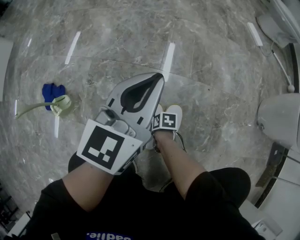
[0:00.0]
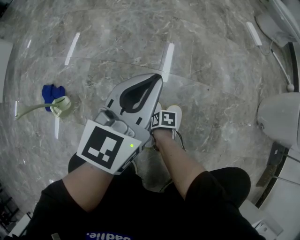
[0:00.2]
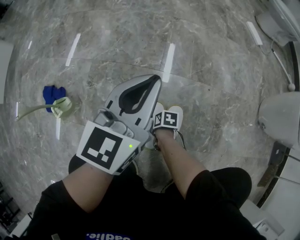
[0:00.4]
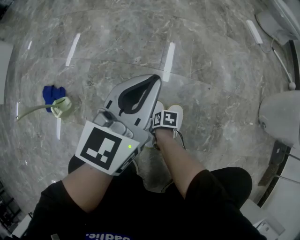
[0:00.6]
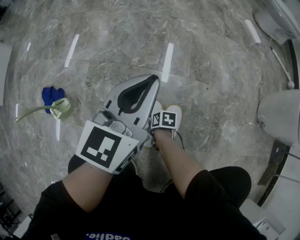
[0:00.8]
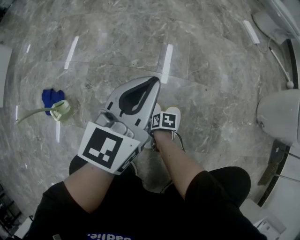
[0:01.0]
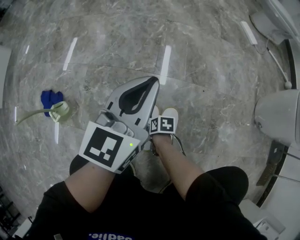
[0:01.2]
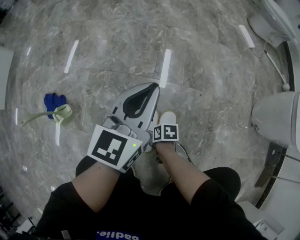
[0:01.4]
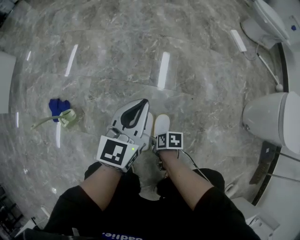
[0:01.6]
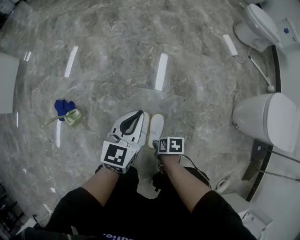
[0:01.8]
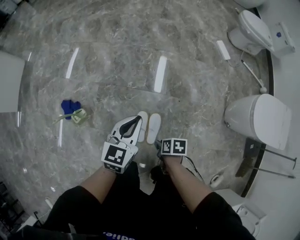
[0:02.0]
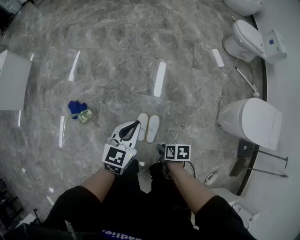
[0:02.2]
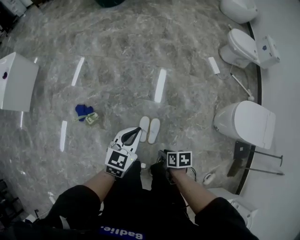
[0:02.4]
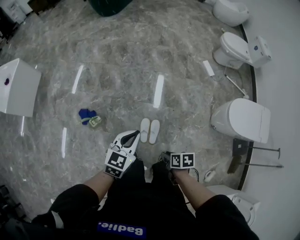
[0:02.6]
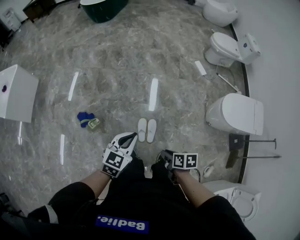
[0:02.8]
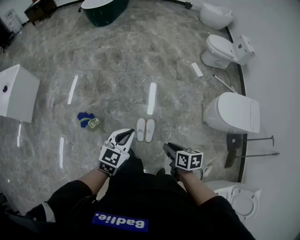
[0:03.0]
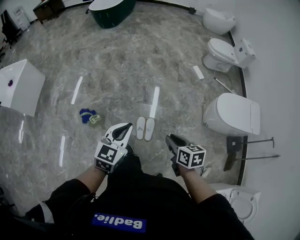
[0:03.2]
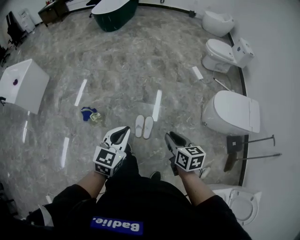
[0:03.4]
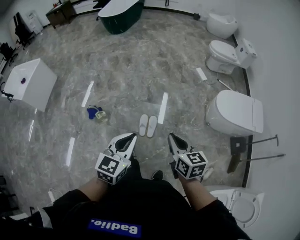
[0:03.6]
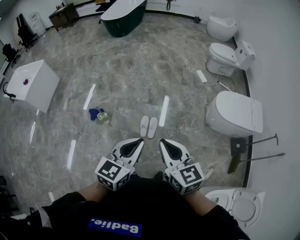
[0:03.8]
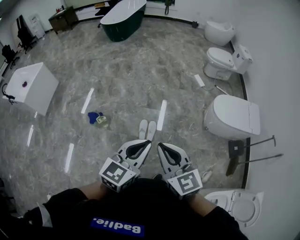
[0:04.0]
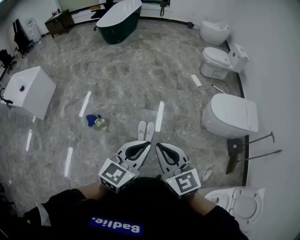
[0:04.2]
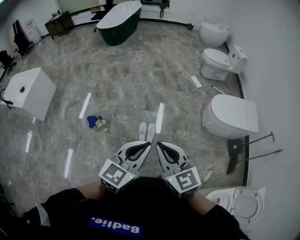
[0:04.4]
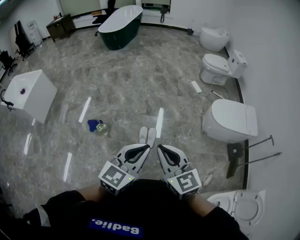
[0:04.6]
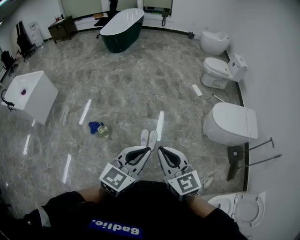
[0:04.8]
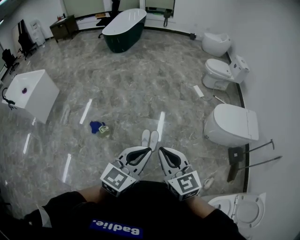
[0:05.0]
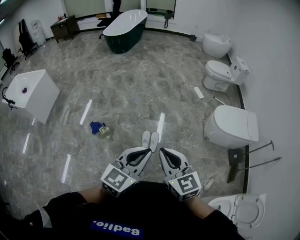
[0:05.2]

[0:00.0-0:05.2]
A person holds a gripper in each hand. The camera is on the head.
0:00.0 to 0:01.8: The right gripper shifts approximately 25 cm upward, while the left gripper shifts approximately 10 cm upward.
0:01.8 to 0:03.4: Both grippers move upward, about 50 cm. The right gripper points its fingers roughly 30 degrees further upward.
0:03.4 to 0:05.2: The right gripper is displaced upward, backward and to the left by roughly 25 cm, and changes its angle by approximately 30 degrees. Meanwhile the left gripper goes roughly 20 cm backward and upward.

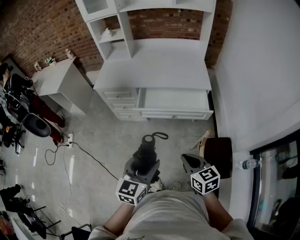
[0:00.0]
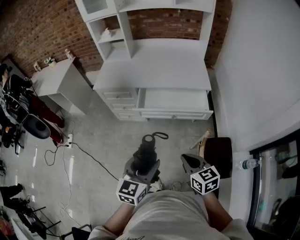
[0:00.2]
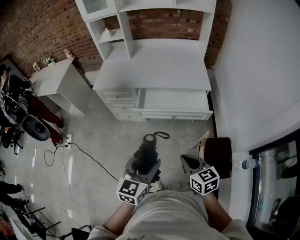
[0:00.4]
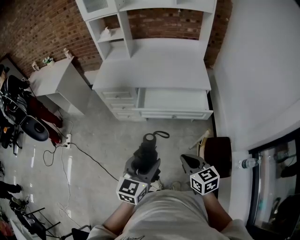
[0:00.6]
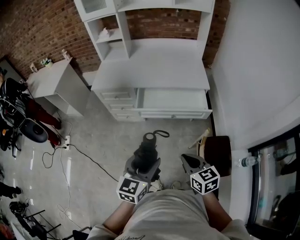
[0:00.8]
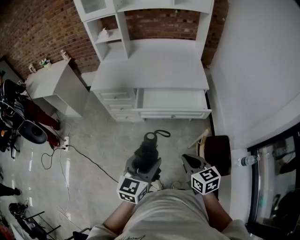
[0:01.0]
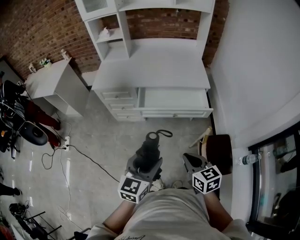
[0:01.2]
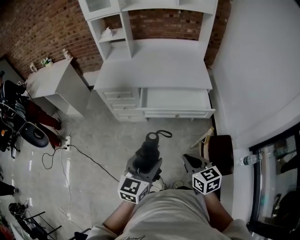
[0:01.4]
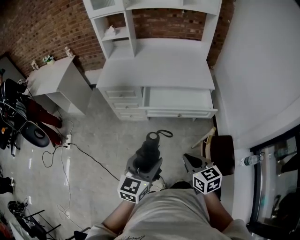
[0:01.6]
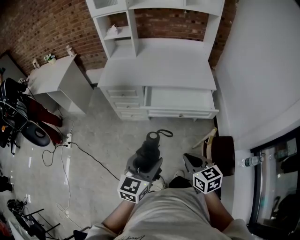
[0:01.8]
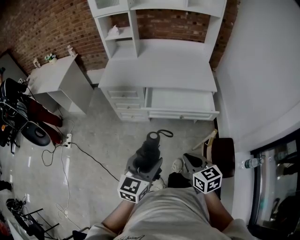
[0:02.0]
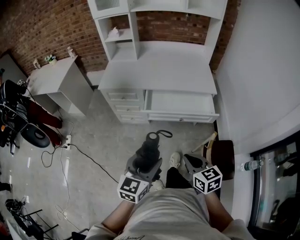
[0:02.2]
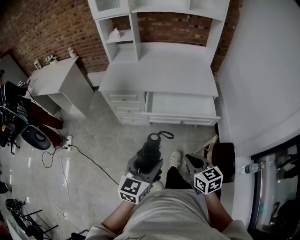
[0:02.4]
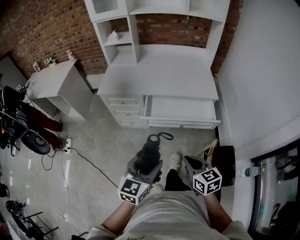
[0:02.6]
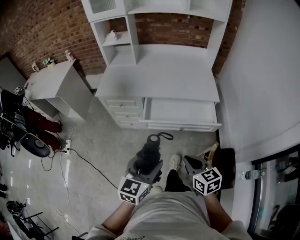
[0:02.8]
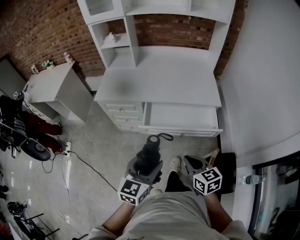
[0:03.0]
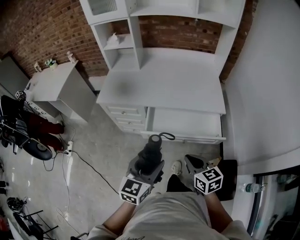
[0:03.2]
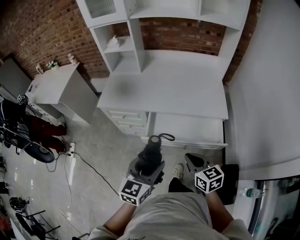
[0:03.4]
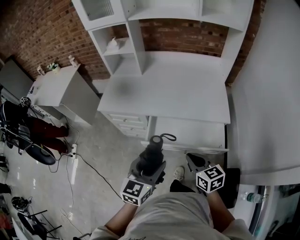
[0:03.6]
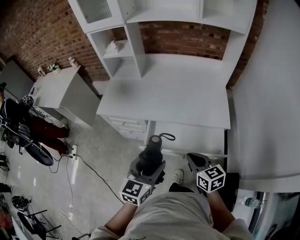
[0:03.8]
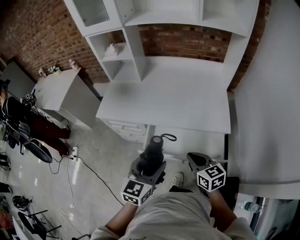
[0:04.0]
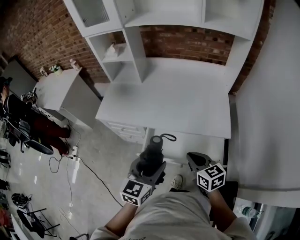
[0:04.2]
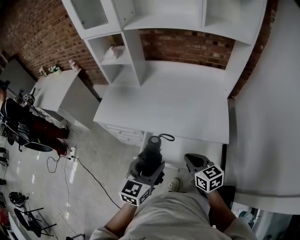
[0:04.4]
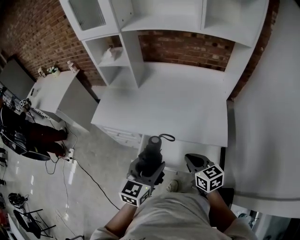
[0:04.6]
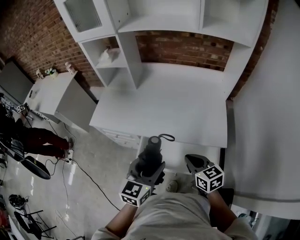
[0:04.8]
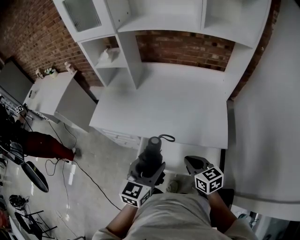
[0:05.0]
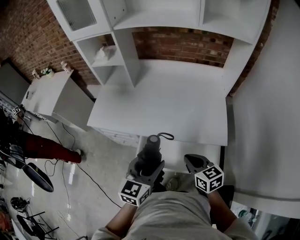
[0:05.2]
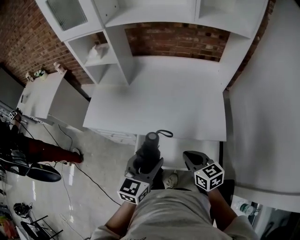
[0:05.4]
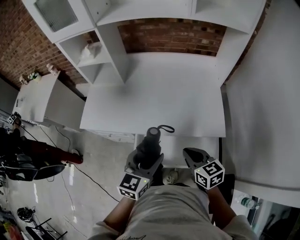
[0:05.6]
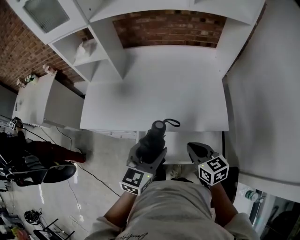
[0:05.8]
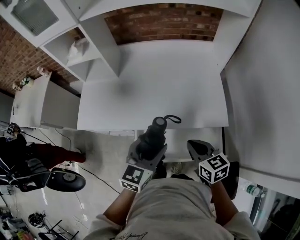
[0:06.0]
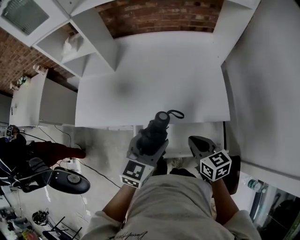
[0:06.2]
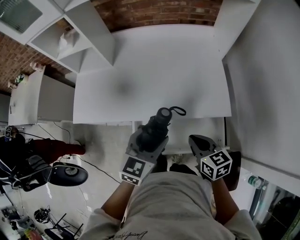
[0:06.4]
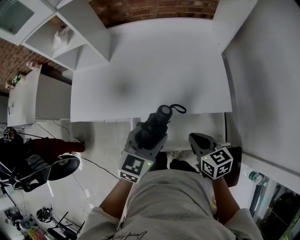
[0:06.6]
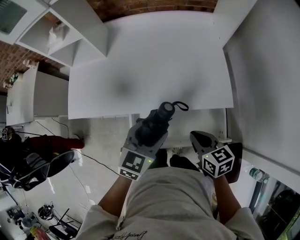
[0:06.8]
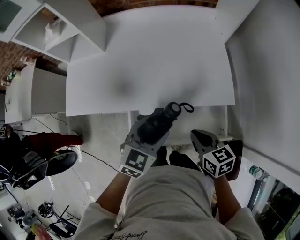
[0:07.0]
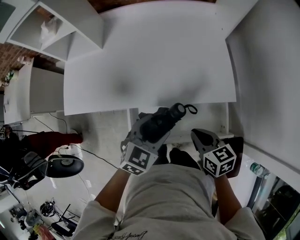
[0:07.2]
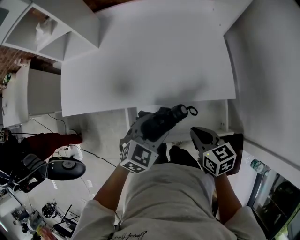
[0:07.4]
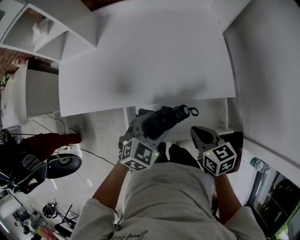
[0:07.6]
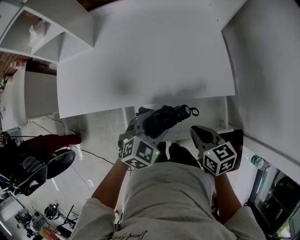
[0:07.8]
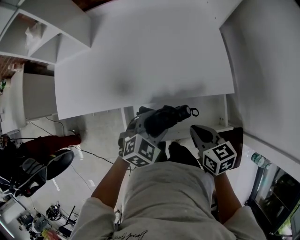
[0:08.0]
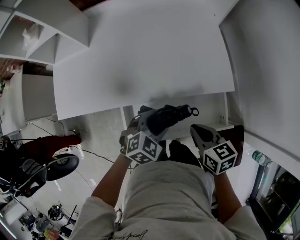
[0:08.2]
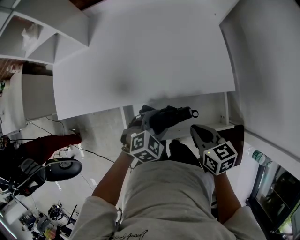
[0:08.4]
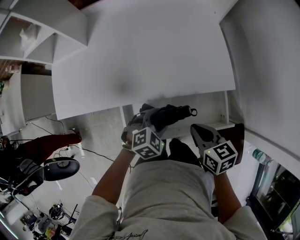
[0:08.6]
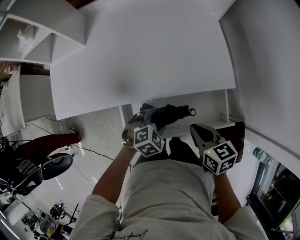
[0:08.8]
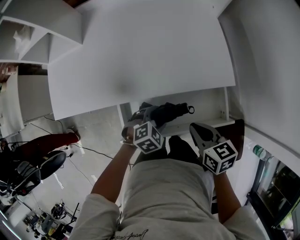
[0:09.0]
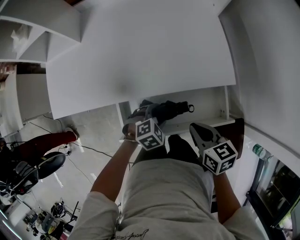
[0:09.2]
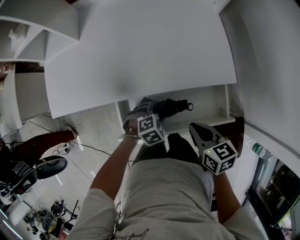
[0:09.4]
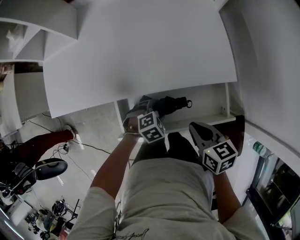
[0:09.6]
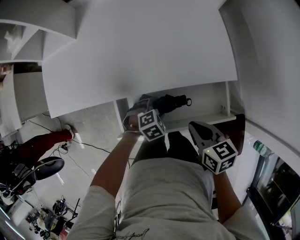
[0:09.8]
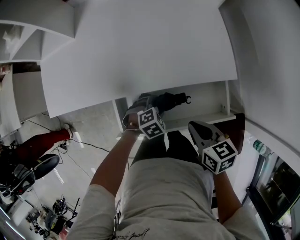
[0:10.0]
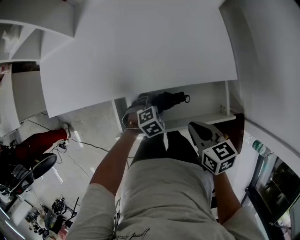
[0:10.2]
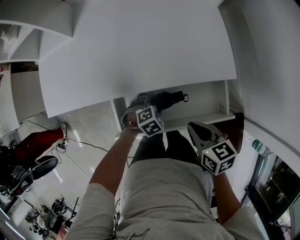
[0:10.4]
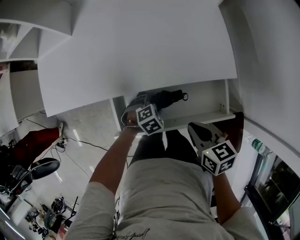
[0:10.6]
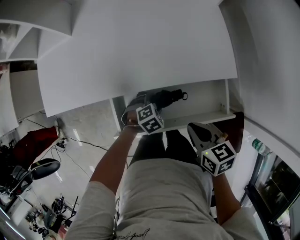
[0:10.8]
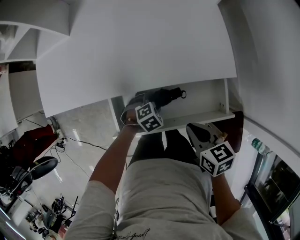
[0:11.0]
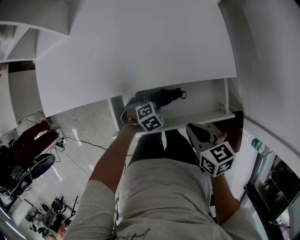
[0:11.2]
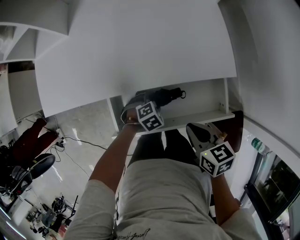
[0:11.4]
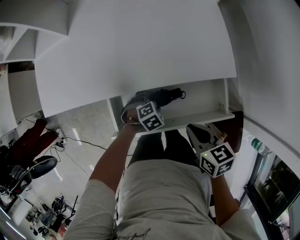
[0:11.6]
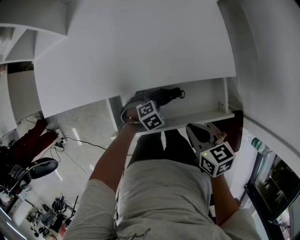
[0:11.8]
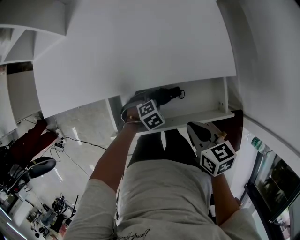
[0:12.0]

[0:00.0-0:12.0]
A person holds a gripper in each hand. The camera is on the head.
0:00.0 to 0:01.6: Both grippers travel together to the left, roughly 5 cm.
0:01.6 to 0:03.0: The grippers both shift forward by roughly 15 cm.
0:03.0 to 0:04.4: The right gripper goes roughly 25 cm forward. The left gripper goes approximately 25 cm forward and to the right.
0:04.4 to 0:06.0: The right gripper heads forward, covering approximately 10 cm; the left gripper is displaced forward by about 15 cm.
0:06.0 to 0:07.6: The right gripper heads downward, covering some 10 cm. The left gripper moves downward, about 15 cm, and turns by about 30 degrees.
0:07.6 to 0:09.0: The left gripper travels downward by some 15 cm, and swivels roughly 20 degrees.
0:09.0 to 0:10.4: The left gripper is displaced downward by roughly 10 cm.
0:10.4 to 0:12.0: The grippers stay close to where they were, moving slightly.

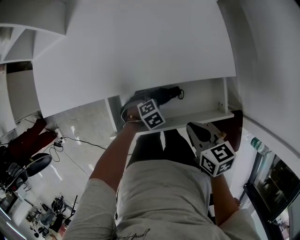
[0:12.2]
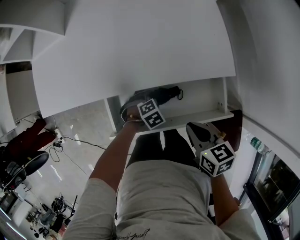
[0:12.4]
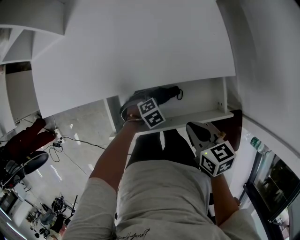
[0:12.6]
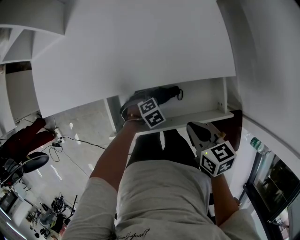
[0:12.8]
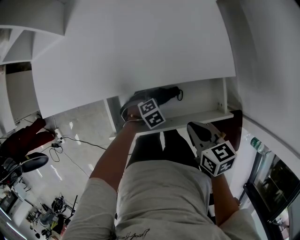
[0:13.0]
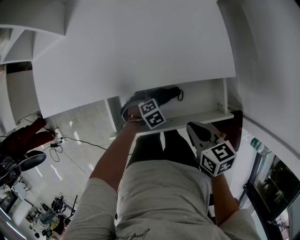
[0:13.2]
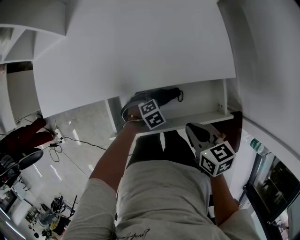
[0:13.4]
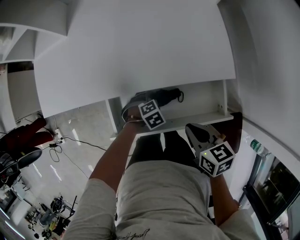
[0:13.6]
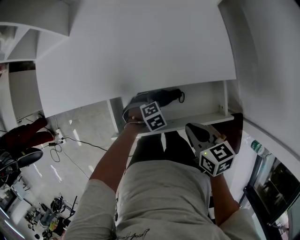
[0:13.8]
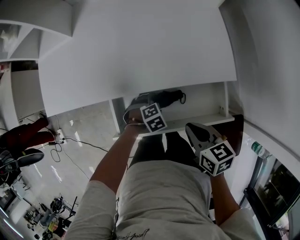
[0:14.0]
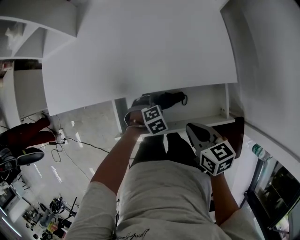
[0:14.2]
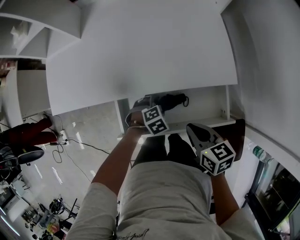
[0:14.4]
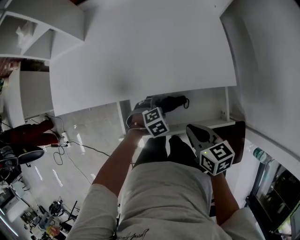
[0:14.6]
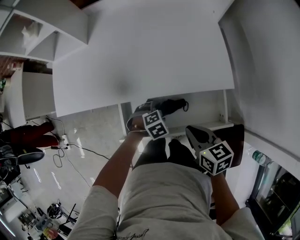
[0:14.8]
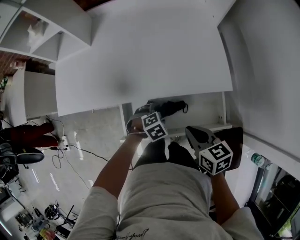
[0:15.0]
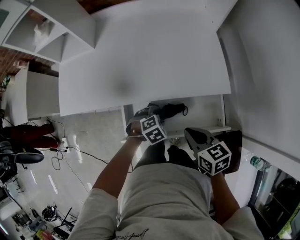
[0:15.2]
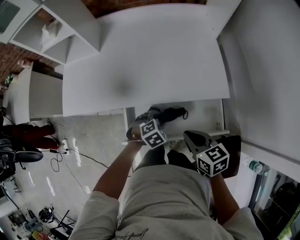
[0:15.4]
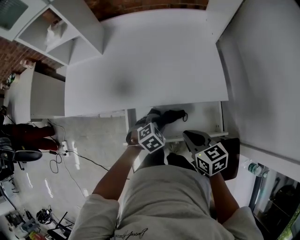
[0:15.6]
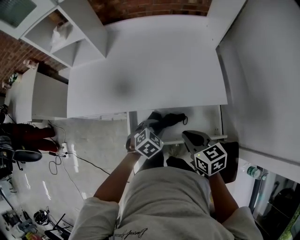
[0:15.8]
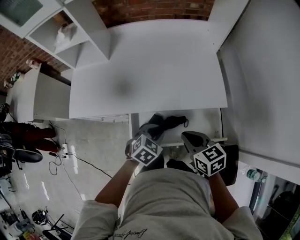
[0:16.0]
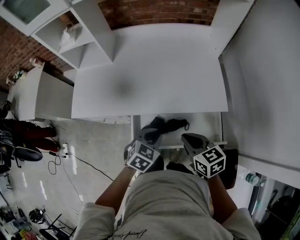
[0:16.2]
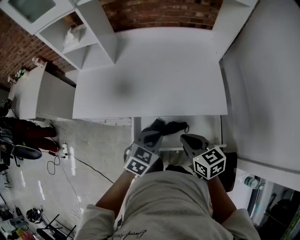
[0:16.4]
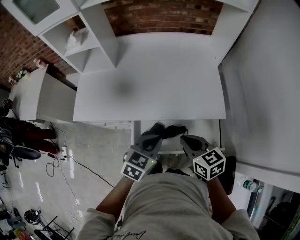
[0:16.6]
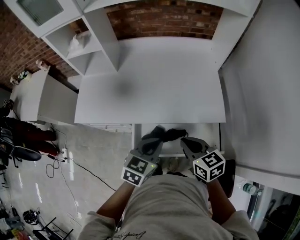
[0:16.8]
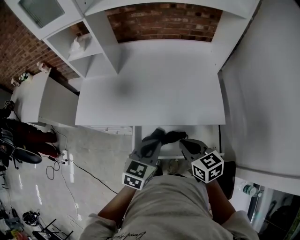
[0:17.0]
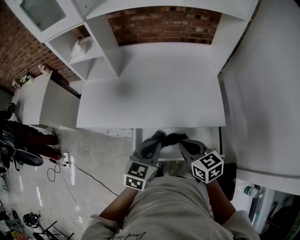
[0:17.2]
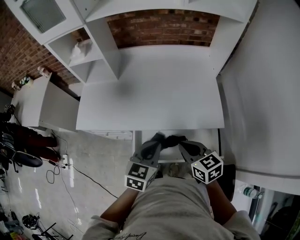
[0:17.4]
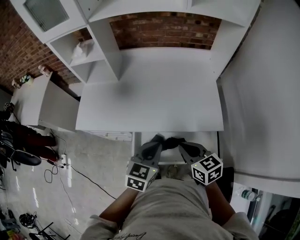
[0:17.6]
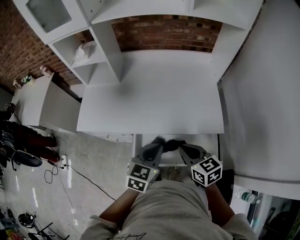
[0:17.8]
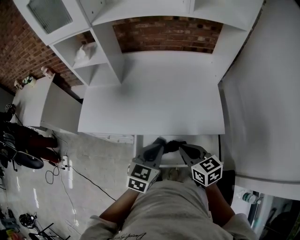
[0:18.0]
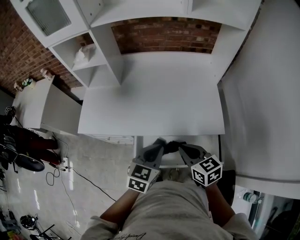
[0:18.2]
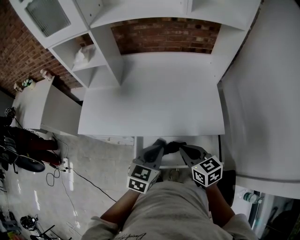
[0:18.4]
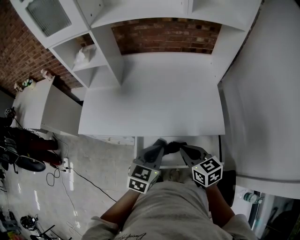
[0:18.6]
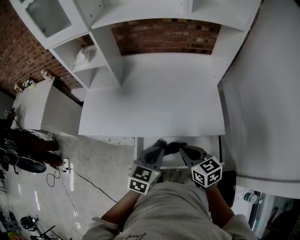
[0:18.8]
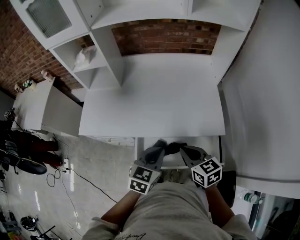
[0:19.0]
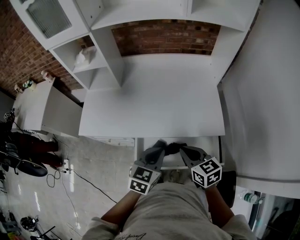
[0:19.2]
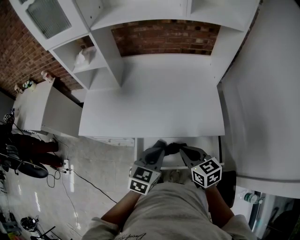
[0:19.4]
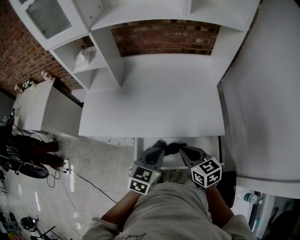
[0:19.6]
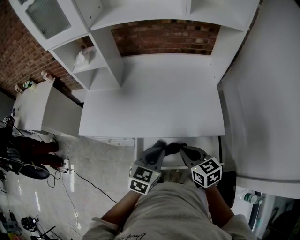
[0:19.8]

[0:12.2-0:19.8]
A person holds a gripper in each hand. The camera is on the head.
0:12.2 to 0:13.8: Neither gripper changes place.
0:13.8 to 0:15.2: The right gripper is displaced upward by about 5 cm. The left gripper shifts roughly 10 cm upward.
0:15.2 to 0:16.8: The right gripper heads upward, covering about 10 cm. Meanwhile the left gripper shifts approximately 25 cm upward, points its fingers about 40 degrees further upward, and closes.
0:16.8 to 0:18.2: There are only small adjustments of the grippers.
0:18.2 to 0:19.8: Both grippers stay put.
